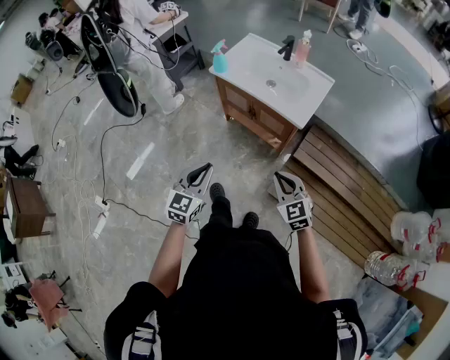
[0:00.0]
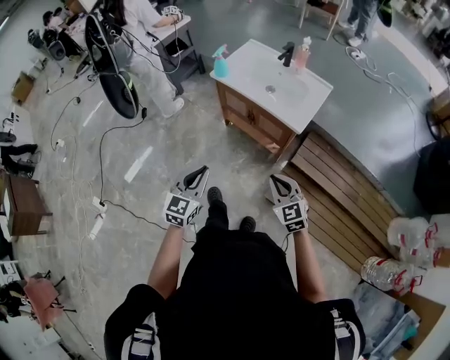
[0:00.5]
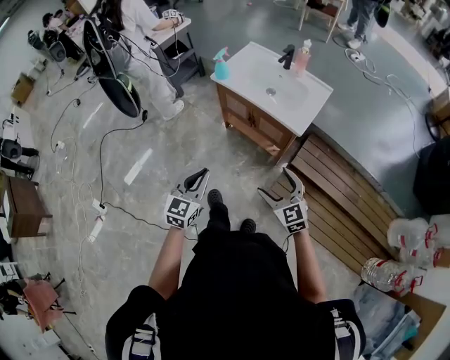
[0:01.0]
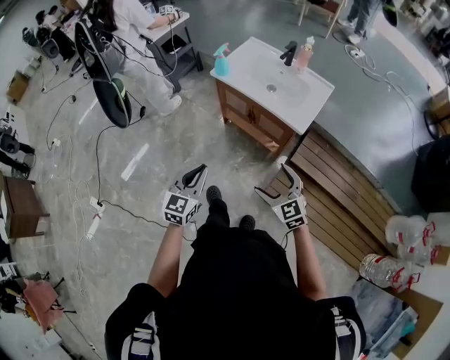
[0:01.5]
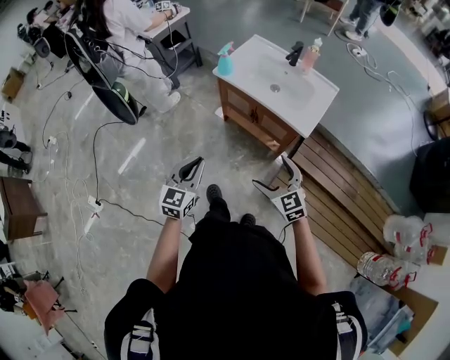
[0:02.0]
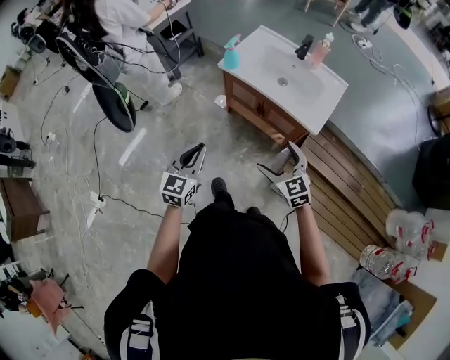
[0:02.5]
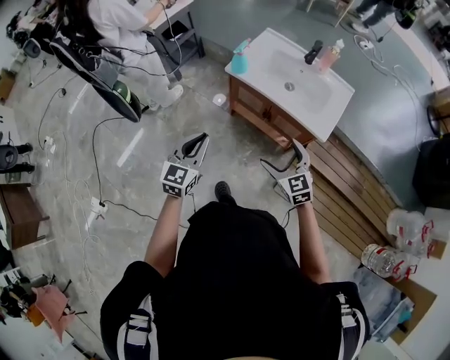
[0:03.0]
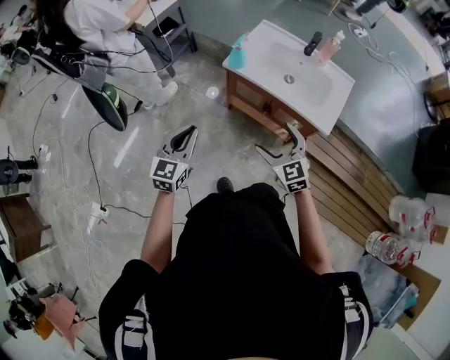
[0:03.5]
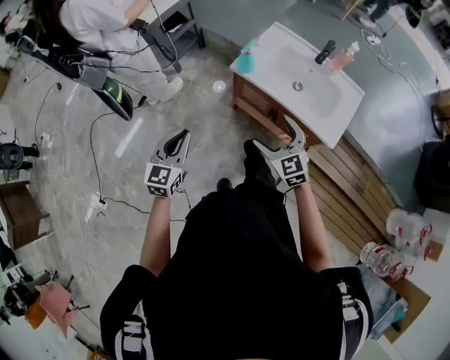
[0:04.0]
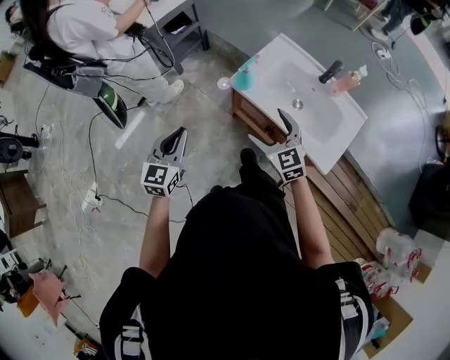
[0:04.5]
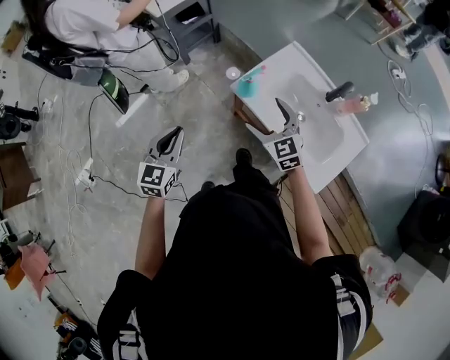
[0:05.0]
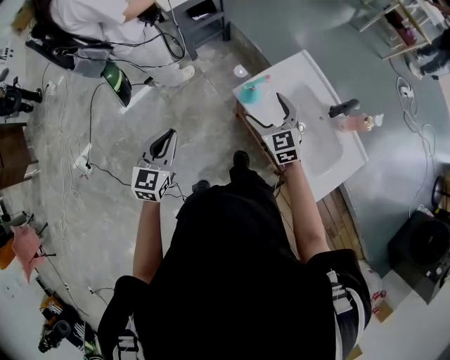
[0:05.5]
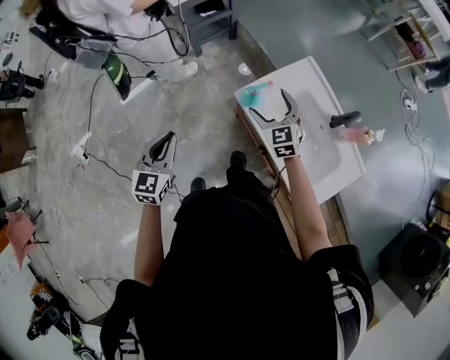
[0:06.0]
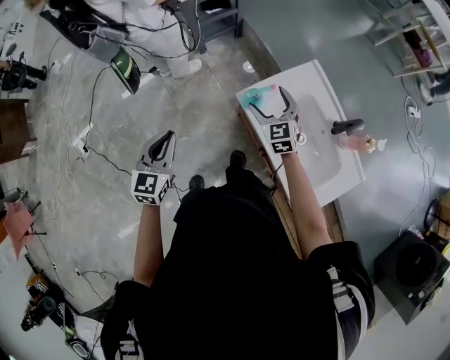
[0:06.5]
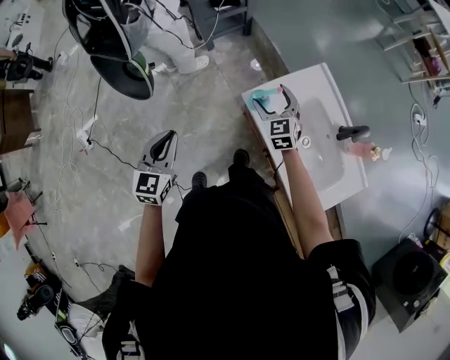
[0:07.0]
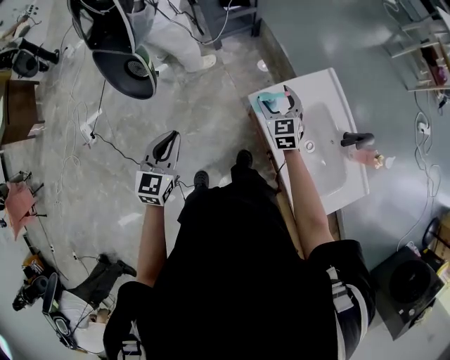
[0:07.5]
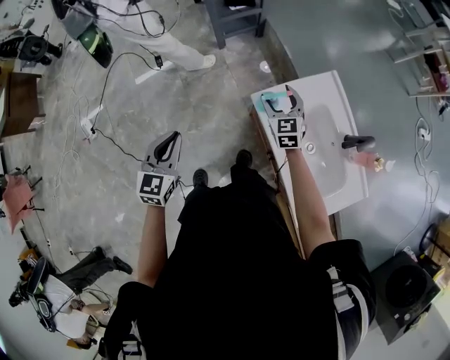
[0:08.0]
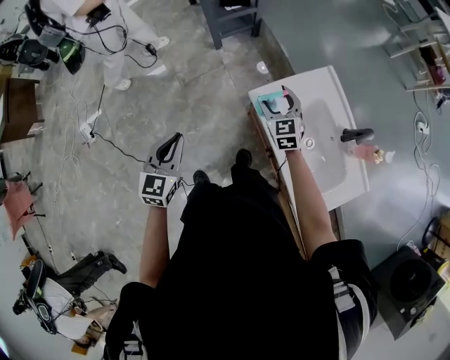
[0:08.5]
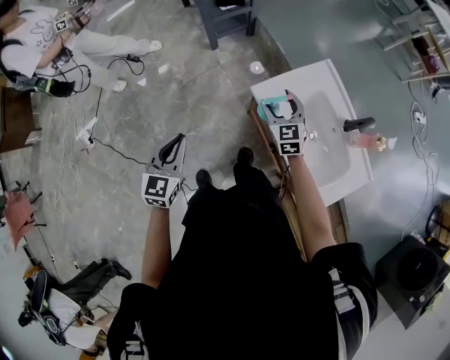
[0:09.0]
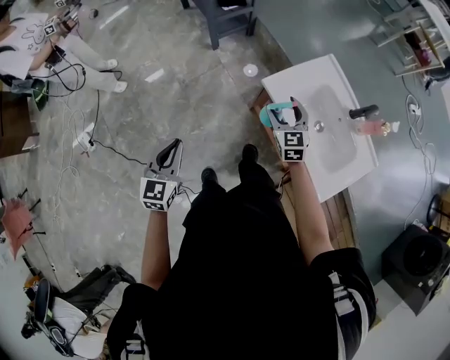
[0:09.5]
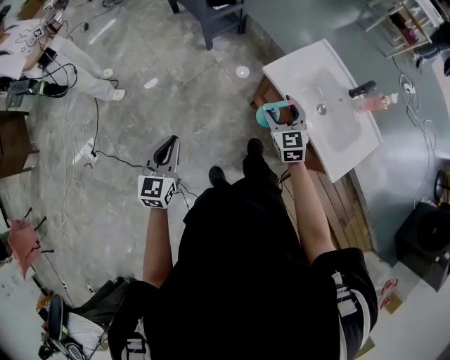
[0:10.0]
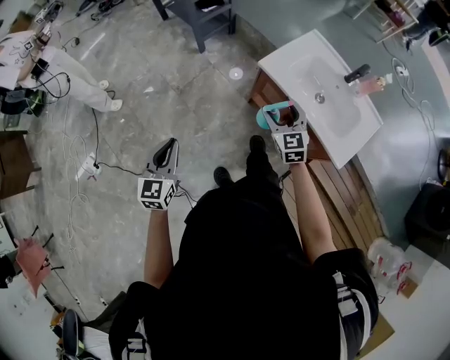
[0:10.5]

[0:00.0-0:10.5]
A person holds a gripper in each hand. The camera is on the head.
0:00.0 to 0:02.0: The grippers both shift to the left and forward by approximately 10 cm. The right gripper opens.
0:02.0 to 0:04.0: Both grippers move forward and to the left, roughly 30 cm.
0:04.0 to 0:06.5: The left gripper travels forward and to the right by approximately 20 cm, and rotates some 30 degrees. The right gripper is displaced forward by roughly 40 cm.
0:06.5 to 0:08.5: There are only small adjustments of the grippers.
0:08.5 to 0:10.5: The right gripper shifts roughly 30 cm backward and to the left. The left gripper shifts roughly 25 cm to the left and backward.

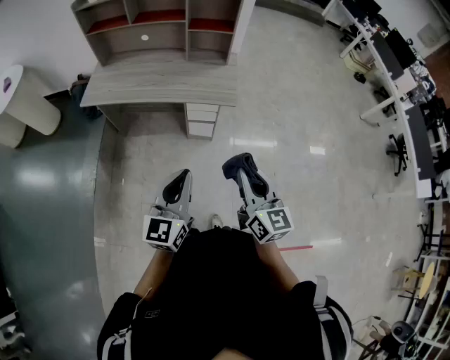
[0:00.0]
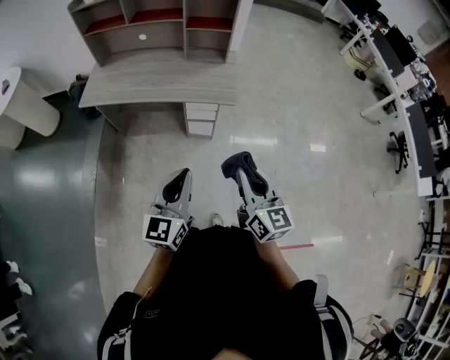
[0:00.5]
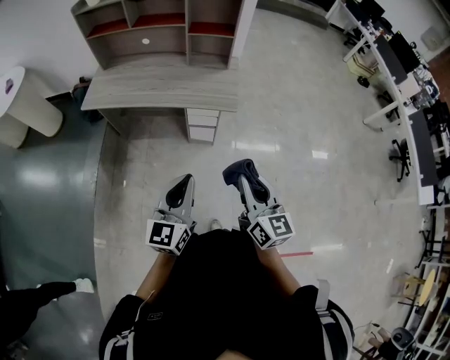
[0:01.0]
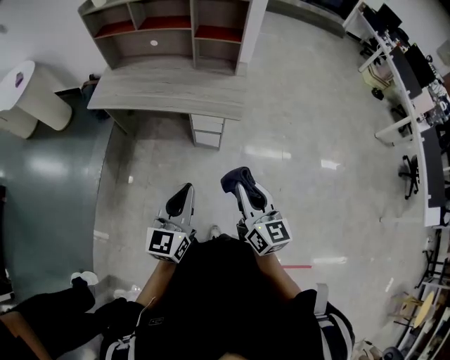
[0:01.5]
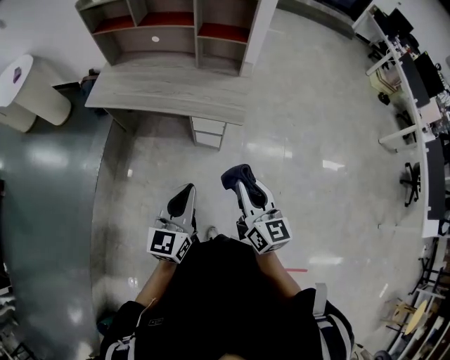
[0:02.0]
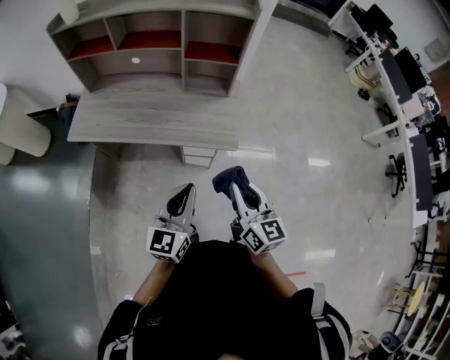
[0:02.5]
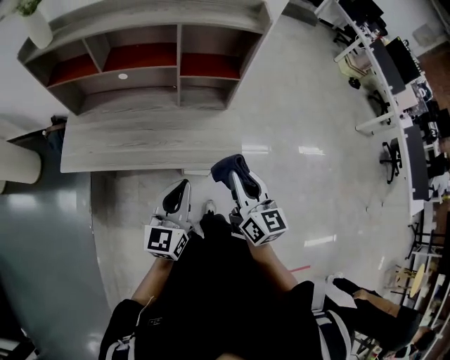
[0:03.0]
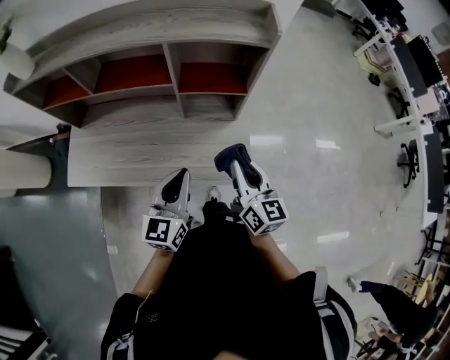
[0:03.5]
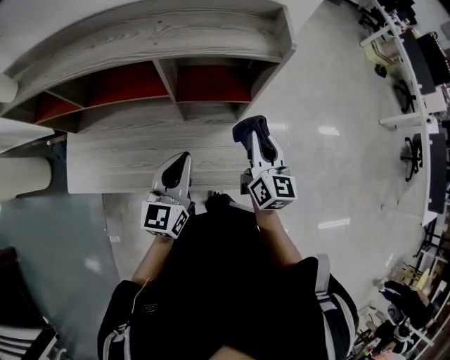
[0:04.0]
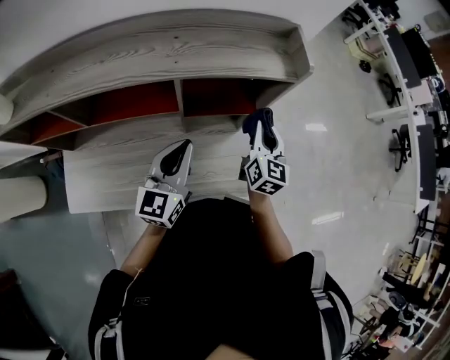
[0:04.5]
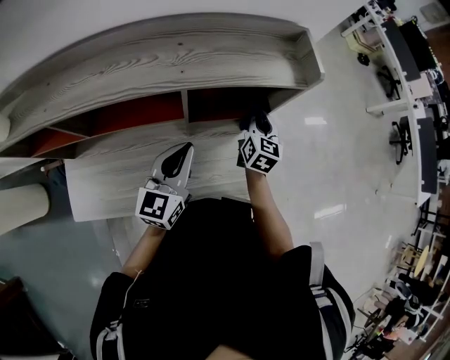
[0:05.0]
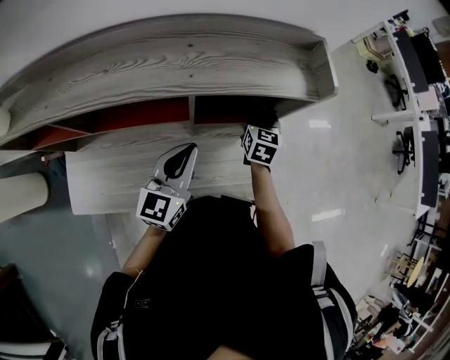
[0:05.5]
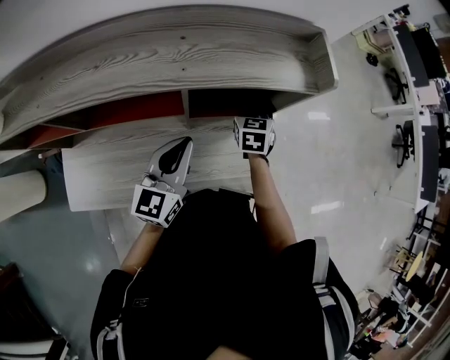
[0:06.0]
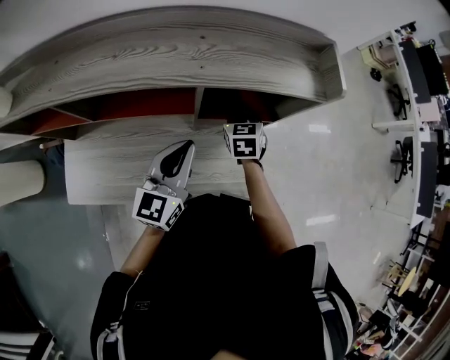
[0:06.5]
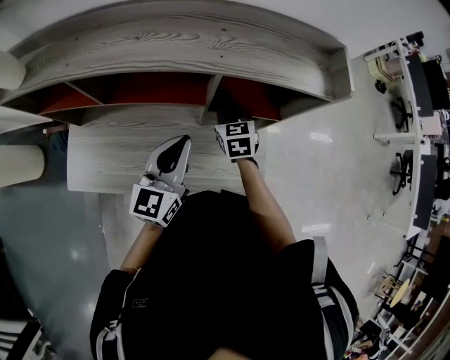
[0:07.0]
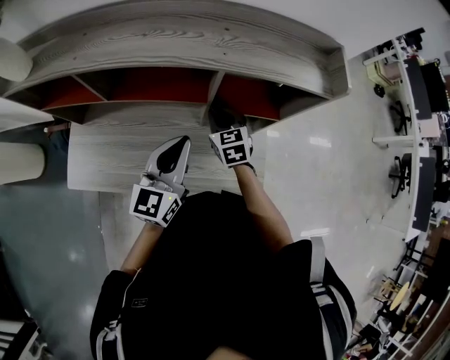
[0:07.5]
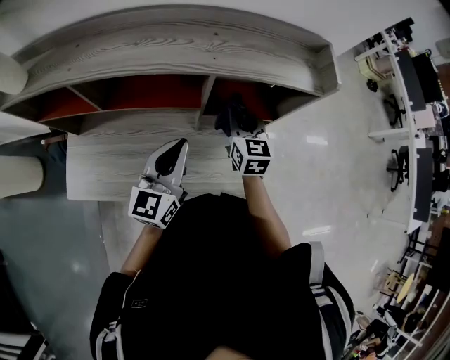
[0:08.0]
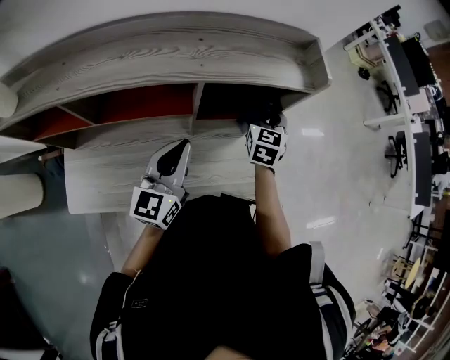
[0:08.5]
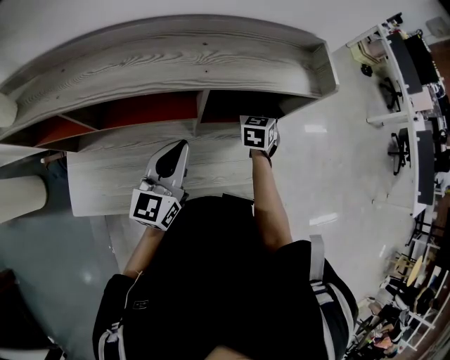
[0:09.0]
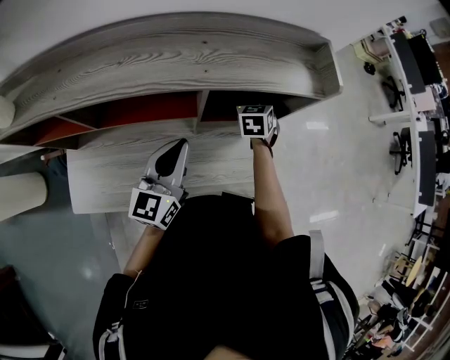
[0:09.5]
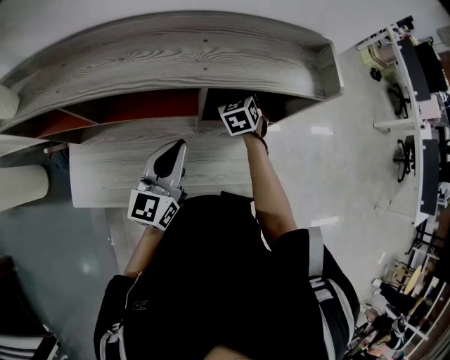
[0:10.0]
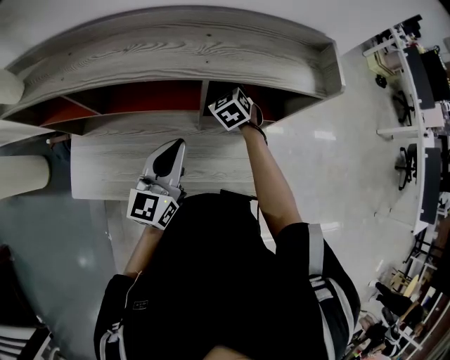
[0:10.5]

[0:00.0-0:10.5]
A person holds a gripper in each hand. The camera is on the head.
0:00.0 to 0:02.0: The right gripper shifts roughly 10 cm forward, while the left gripper travels forward and to the right by approximately 10 cm.
0:02.0 to 0:04.0: The pair of grippers is taken forward, approximately 50 cm. The right gripper swivels about 20 degrees.
0:04.0 to 0:06.5: The left gripper heads to the left and forward, covering approximately 10 cm. Meanwhile the right gripper heads to the left, forward and downward, covering about 20 cm, and turns by some 40 degrees.
0:06.5 to 0:08.5: The right gripper goes roughly 10 cm to the right and upward, and rotates some 20 degrees.
0:08.5 to 0:10.5: The right gripper travels to the left and downward by approximately 20 cm, and swivels about 50 degrees.

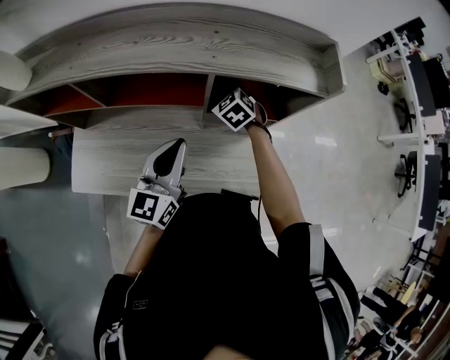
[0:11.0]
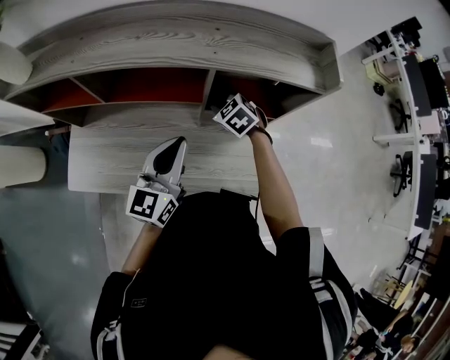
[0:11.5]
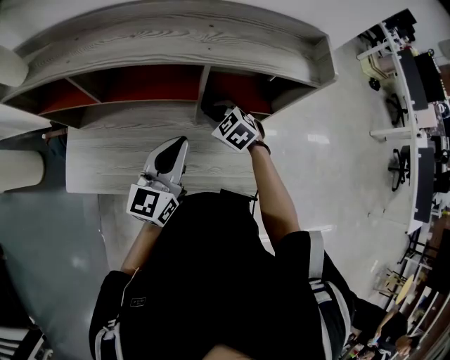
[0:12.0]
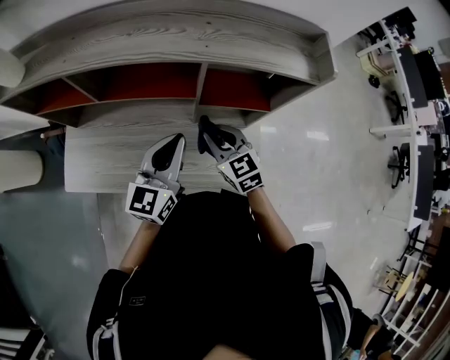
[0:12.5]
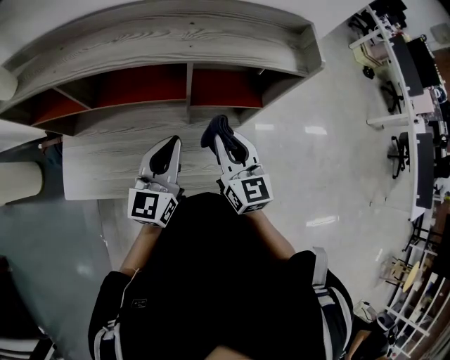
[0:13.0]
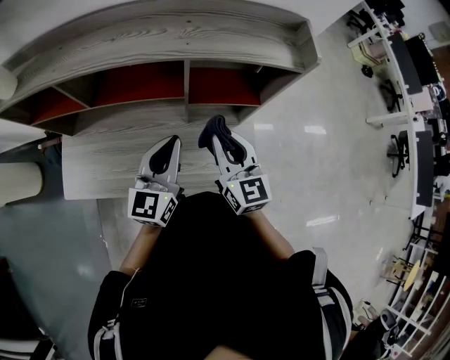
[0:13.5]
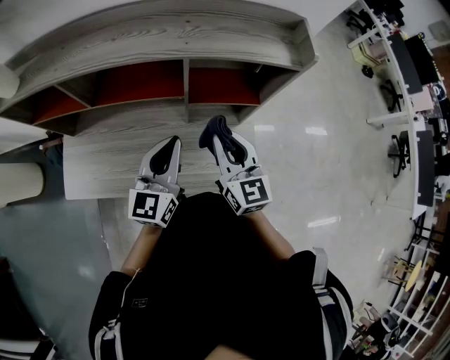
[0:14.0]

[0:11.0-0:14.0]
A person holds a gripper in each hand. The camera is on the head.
0:11.0 to 0:12.5: The right gripper moves backward, roughly 15 cm, and rotates roughly 30 degrees.
0:12.5 to 0:14.0: The right gripper heads upward, covering roughly 10 cm, and turns by approximately 30 degrees.

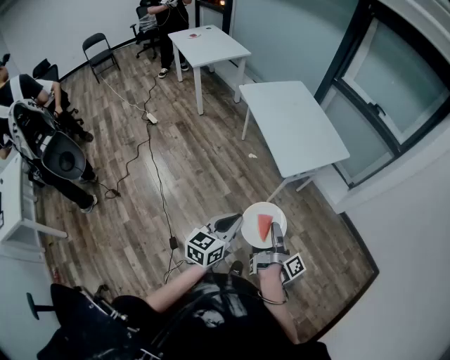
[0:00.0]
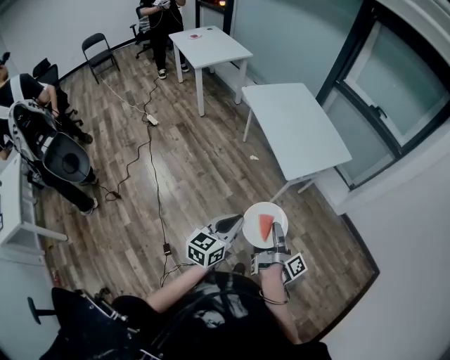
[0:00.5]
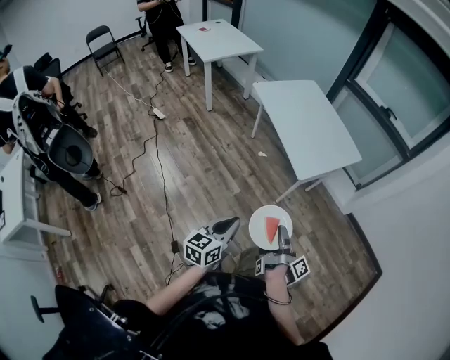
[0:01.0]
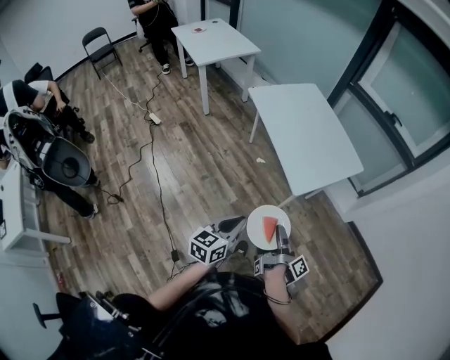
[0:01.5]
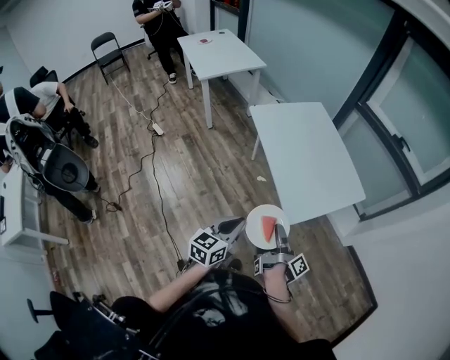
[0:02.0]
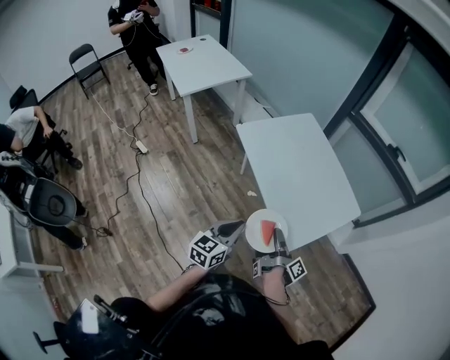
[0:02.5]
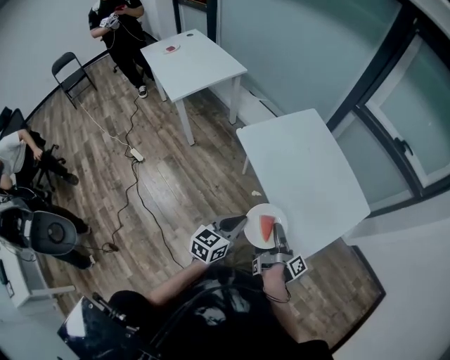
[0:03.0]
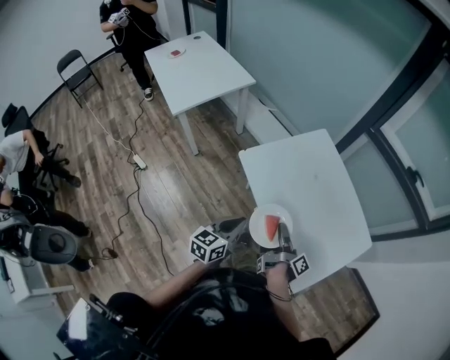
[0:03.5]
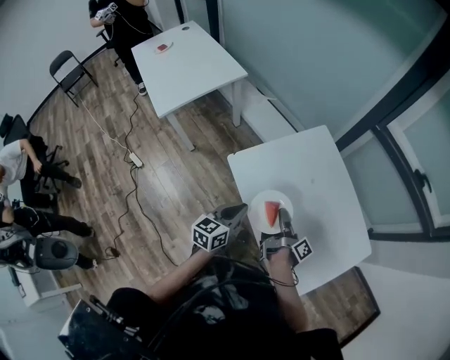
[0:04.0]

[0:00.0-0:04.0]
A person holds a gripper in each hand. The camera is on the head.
0:00.0 to 0:02.0: The left gripper ends up some 25 cm from where it was.
0:02.0 to 0:04.0: The left gripper ends up some 50 cm from where it was.
